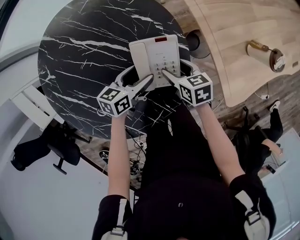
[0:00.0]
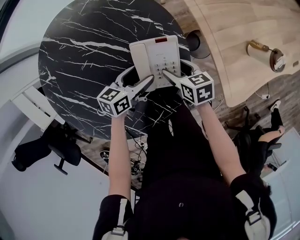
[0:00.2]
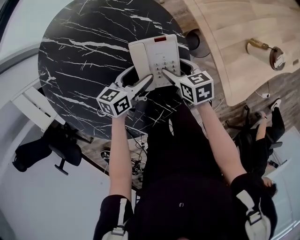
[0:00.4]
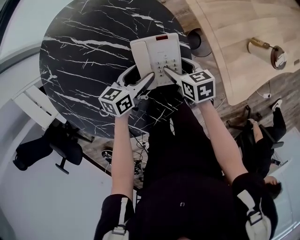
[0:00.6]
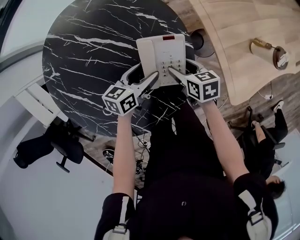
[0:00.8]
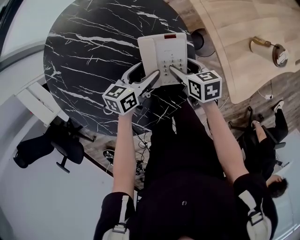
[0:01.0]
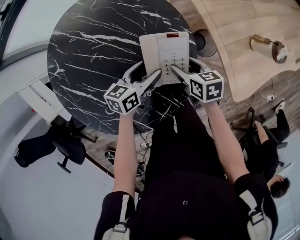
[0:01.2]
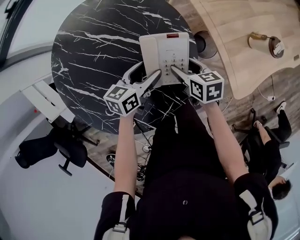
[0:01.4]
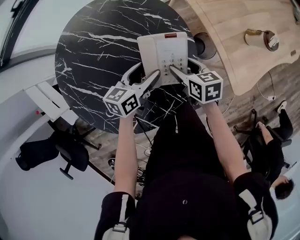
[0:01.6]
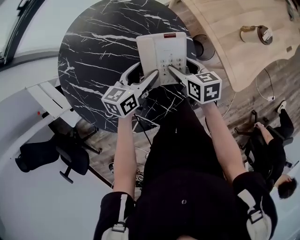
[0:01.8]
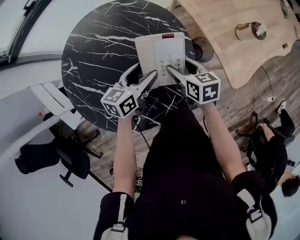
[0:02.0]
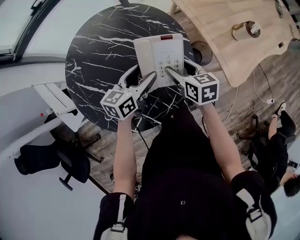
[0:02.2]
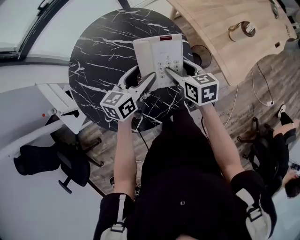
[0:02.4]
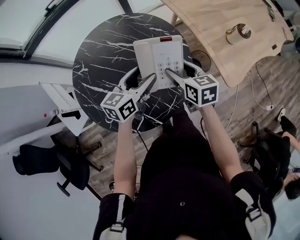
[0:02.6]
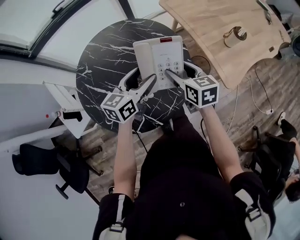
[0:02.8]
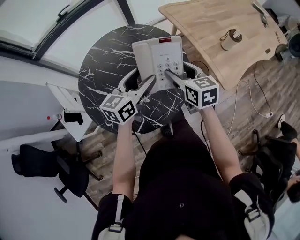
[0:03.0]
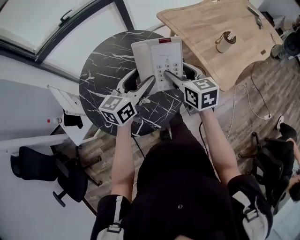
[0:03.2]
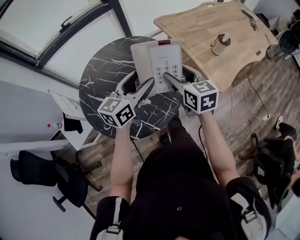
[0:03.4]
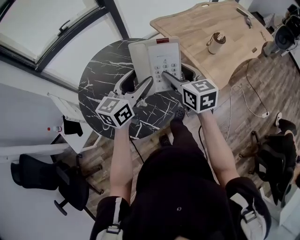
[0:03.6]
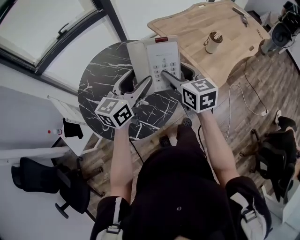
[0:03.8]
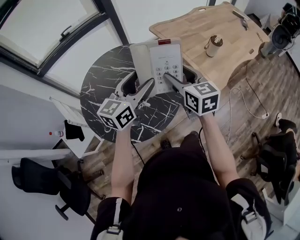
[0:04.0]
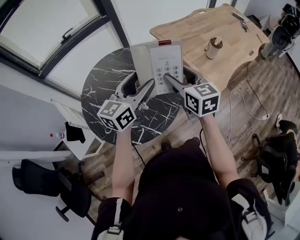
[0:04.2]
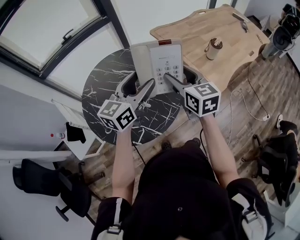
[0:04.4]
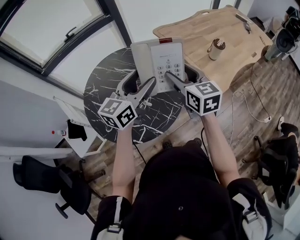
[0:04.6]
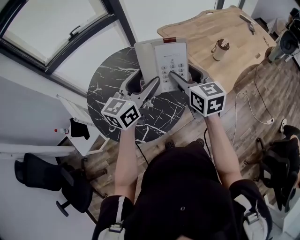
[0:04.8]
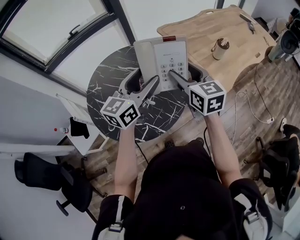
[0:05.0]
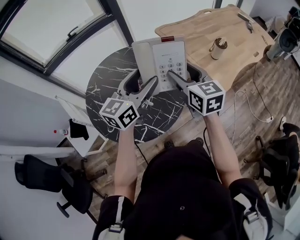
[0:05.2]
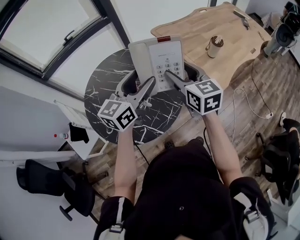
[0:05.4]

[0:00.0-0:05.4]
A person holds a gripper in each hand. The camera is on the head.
0:00.0 to 0:01.4: The grippers both shift upward by approximately 5 cm.
0:01.4 to 0:02.8: The two grippers go about 20 cm upward and backward. The right gripper rotates some 30 degrees; the left gripper turns by roughly 20 degrees.
0:02.8 to 0:04.0: Both grippers travel together upward and backward, about 15 cm.
0:04.0 to 0:05.4: The grippers move only a little.

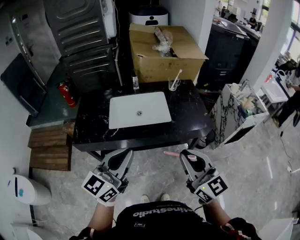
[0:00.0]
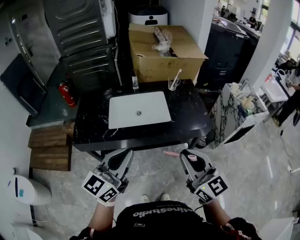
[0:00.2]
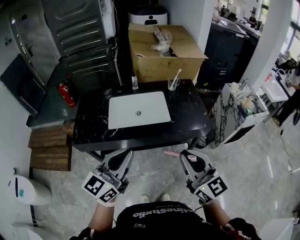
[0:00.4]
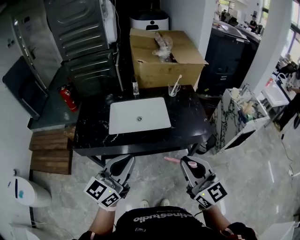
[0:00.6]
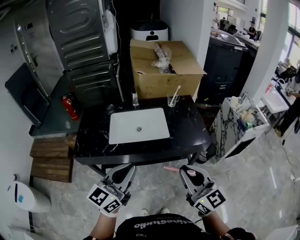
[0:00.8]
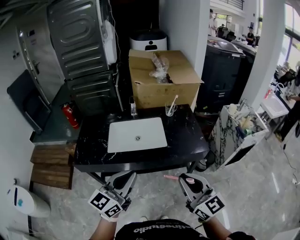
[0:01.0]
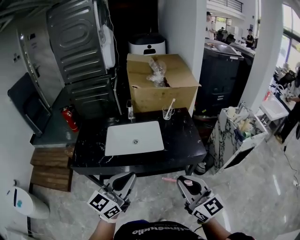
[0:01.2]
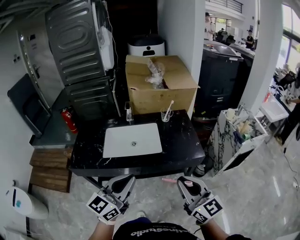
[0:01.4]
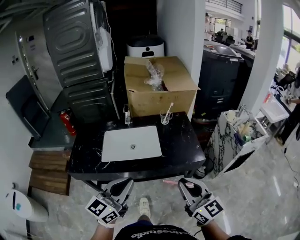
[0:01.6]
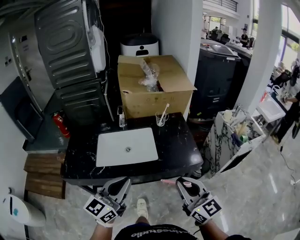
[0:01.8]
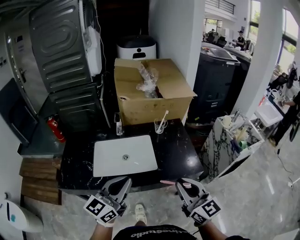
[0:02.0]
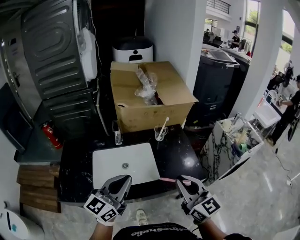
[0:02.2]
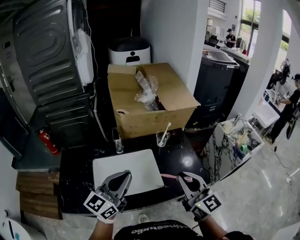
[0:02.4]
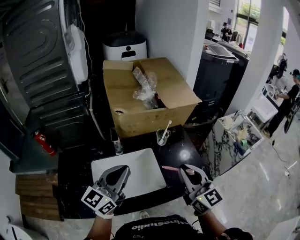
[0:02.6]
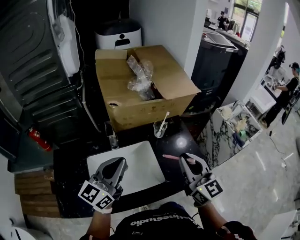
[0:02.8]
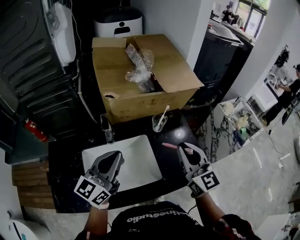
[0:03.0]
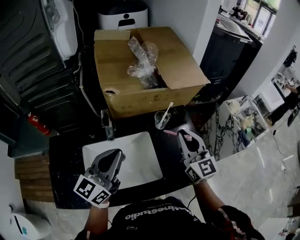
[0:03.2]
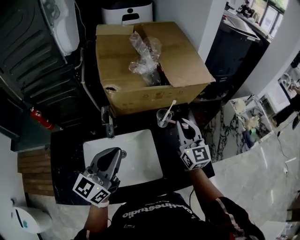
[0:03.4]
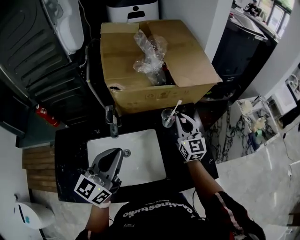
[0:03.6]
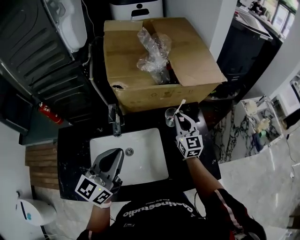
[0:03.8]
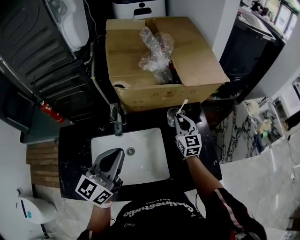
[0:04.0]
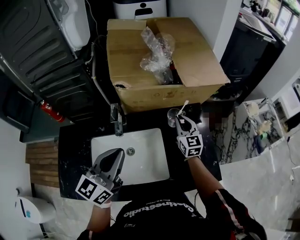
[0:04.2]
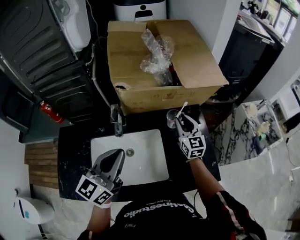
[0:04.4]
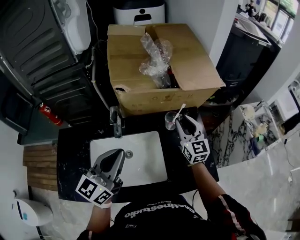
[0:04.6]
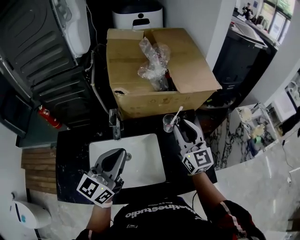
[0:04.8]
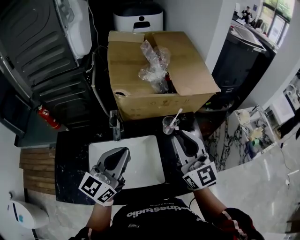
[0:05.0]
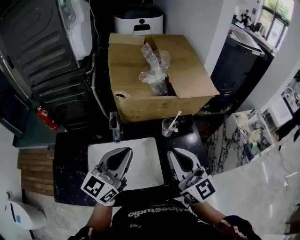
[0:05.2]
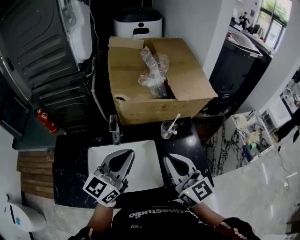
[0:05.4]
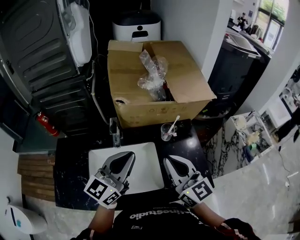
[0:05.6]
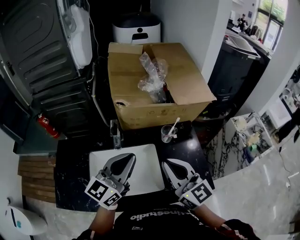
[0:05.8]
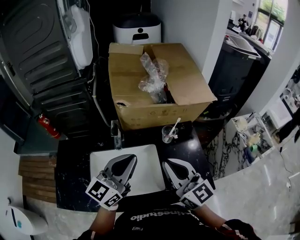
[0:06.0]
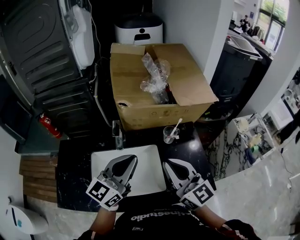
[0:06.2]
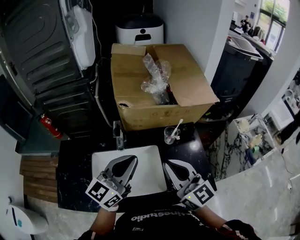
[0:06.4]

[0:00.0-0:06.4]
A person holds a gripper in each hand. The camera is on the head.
0:00.0 to 0:01.6: Both grippers move to the right, about 10 cm.
0:01.6 to 0:03.2: The grippers both shift forward by approximately 40 cm.
0:03.2 to 0:04.8: The right gripper moves forward, some 5 cm, and reaches some 15 cm downward, then returns.
0:04.8 to 0:06.4: The right gripper is displaced backward, to the left and upward by approximately 15 cm, and closes its fingers.

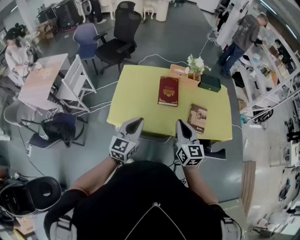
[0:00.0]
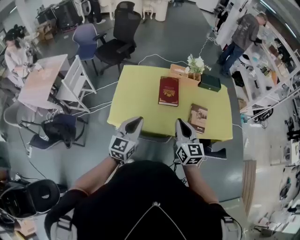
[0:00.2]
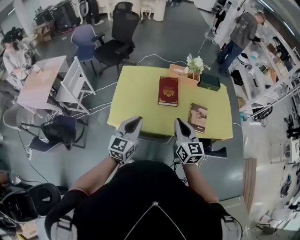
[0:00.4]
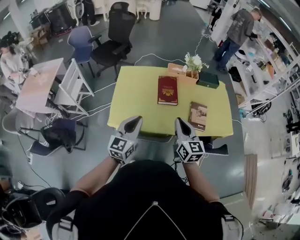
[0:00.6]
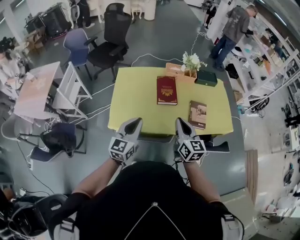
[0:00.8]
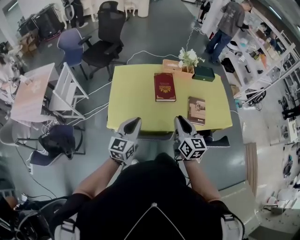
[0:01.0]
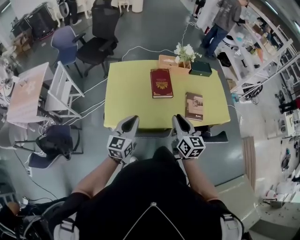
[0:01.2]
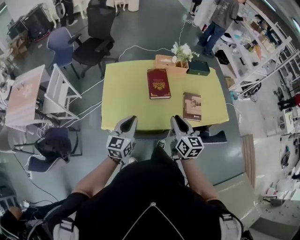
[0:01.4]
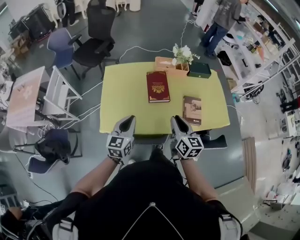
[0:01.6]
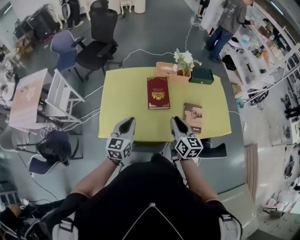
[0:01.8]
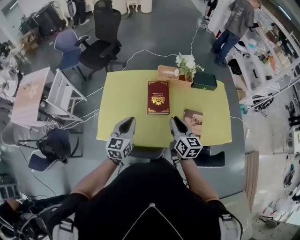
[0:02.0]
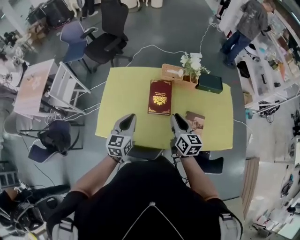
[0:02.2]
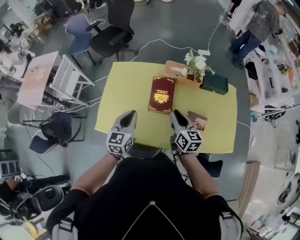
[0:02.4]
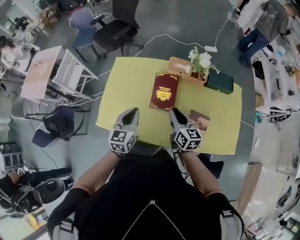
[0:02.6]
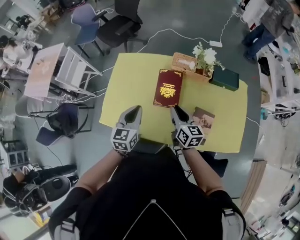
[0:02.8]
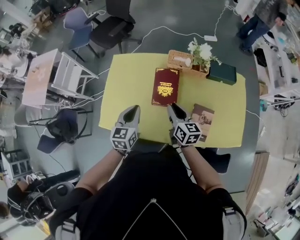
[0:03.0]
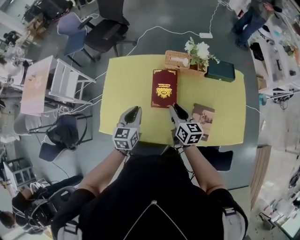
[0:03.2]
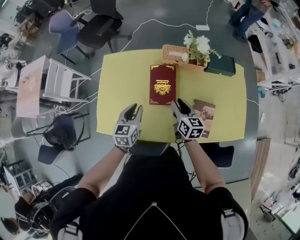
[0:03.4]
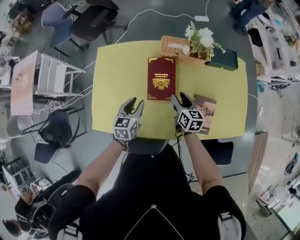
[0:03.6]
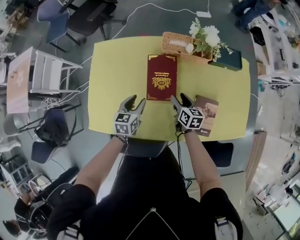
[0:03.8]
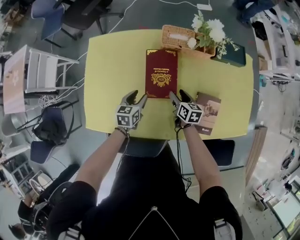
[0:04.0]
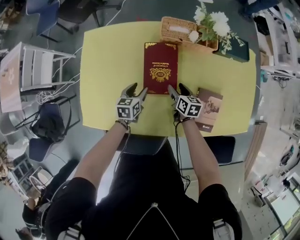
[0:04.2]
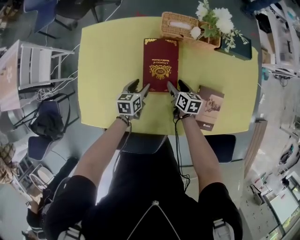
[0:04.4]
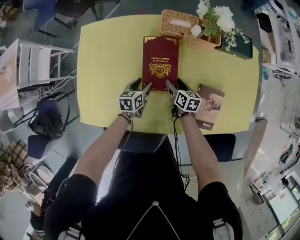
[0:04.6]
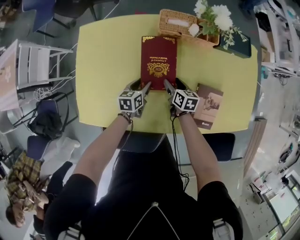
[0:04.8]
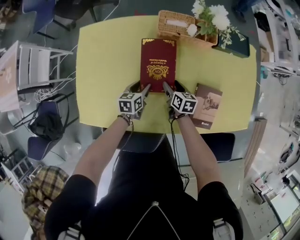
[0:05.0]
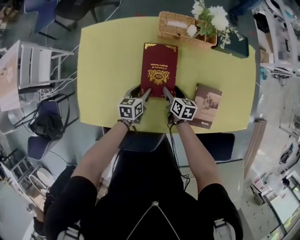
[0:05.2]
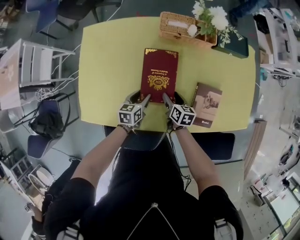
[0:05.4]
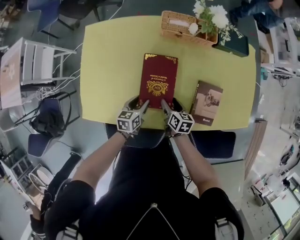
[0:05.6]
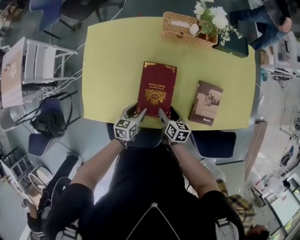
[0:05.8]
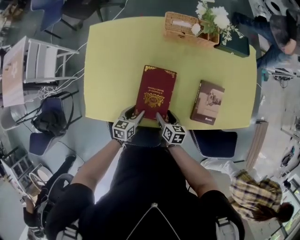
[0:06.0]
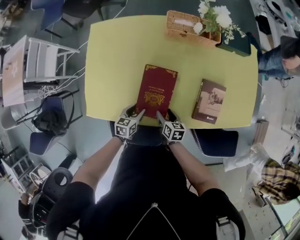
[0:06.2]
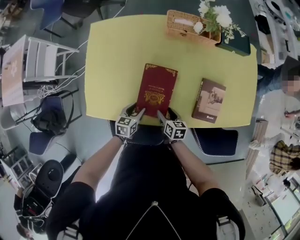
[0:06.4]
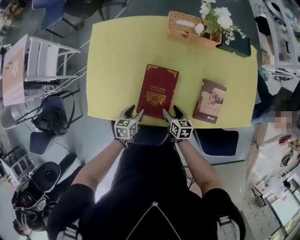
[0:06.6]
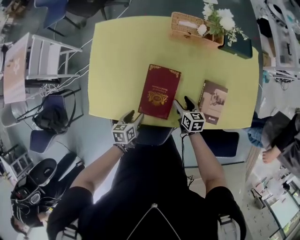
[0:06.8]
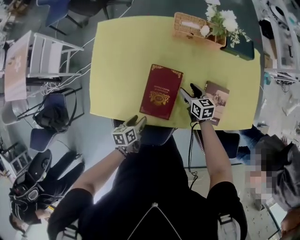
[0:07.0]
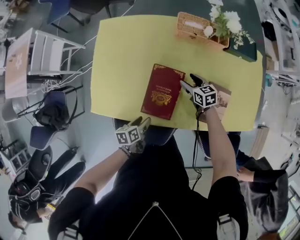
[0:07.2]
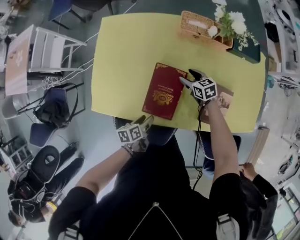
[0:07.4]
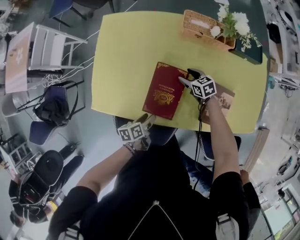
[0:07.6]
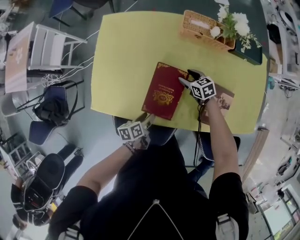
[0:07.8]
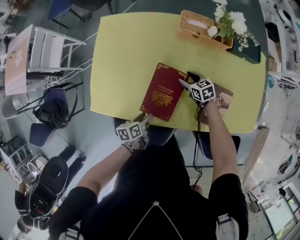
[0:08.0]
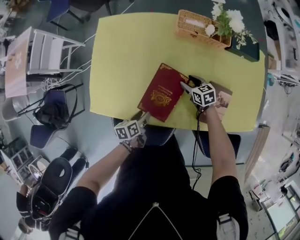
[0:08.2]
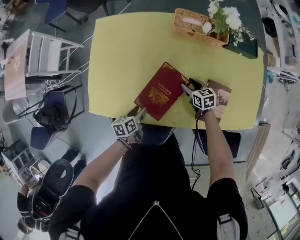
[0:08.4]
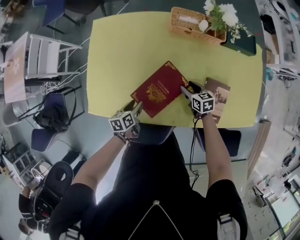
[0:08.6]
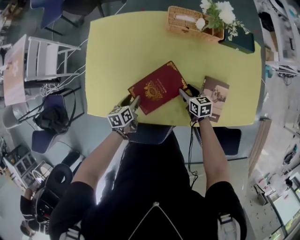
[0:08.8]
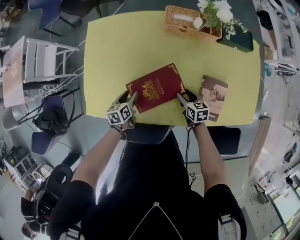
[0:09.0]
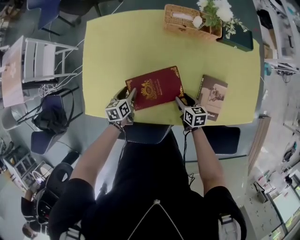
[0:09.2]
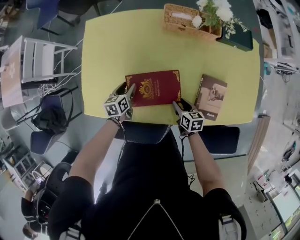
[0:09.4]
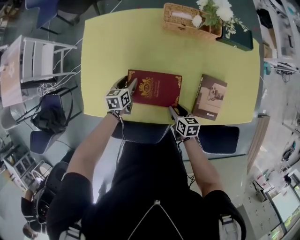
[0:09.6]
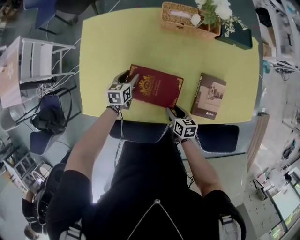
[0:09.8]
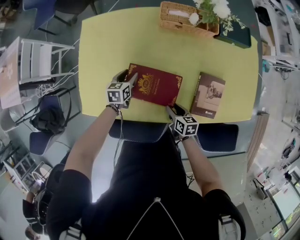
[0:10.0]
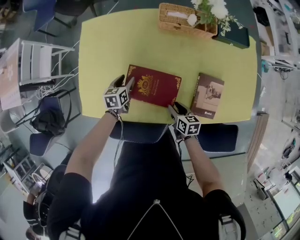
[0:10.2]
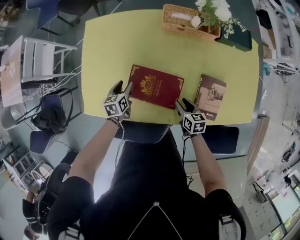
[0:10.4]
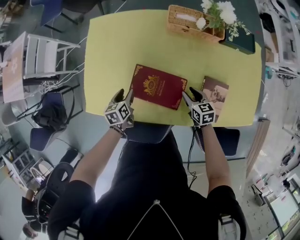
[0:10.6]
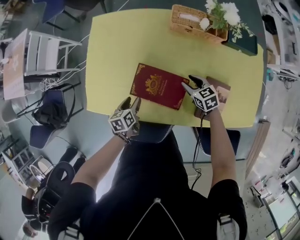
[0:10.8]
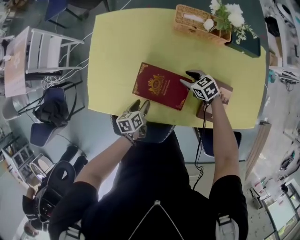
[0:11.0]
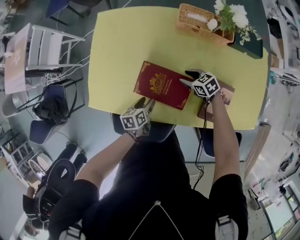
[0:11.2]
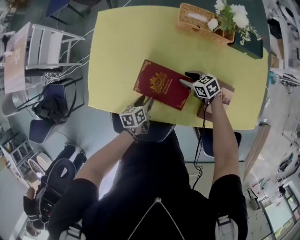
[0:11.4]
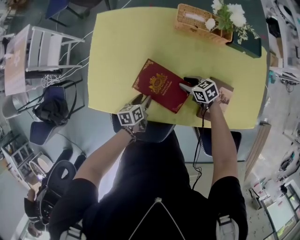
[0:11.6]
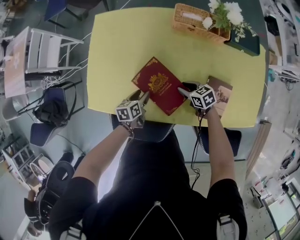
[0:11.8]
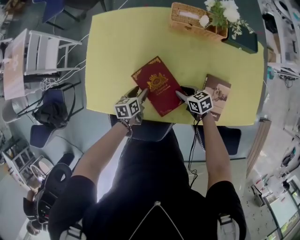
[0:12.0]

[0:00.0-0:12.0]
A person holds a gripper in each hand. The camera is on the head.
0:00.0 to 0:01.6: The two grippers go approximately 10 cm forward and downward.
0:01.6 to 0:03.0: The right gripper moves forward and downward, about 20 cm, and rotates about 20 degrees. Meanwhile the left gripper goes some 20 cm forward and to the right.
0:03.0 to 0:04.4: Both grippers move downward, roughly 30 cm. The left gripper swivels approximately 30 degrees, and opens up, while the right gripper swivels approximately 30 degrees, and opens up.
0:04.4 to 0:06.0: The grippers both shift backward by some 20 cm.
0:06.0 to 0:07.6: The left gripper rotates some 40 degrees. Meanwhile the right gripper heads forward, covering roughly 20 cm, and changes its angle by approximately 40 degrees.
0:07.6 to 0:09.0: The left gripper travels forward by approximately 10 cm, and swivels roughly 20 degrees. Meanwhile the right gripper is displaced backward by about 10 cm, and changes its angle by roughly 20 degrees.
0:10.4 to 0:12.0: The right gripper travels forward by about 5 cm, and turns by approximately 30 degrees. The left gripper travels backward by about 5 cm.
